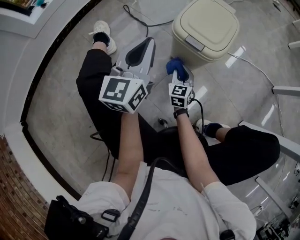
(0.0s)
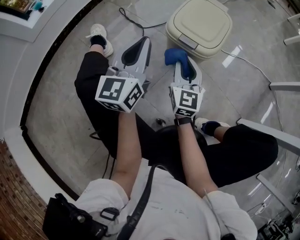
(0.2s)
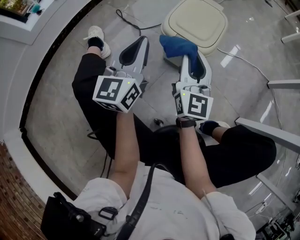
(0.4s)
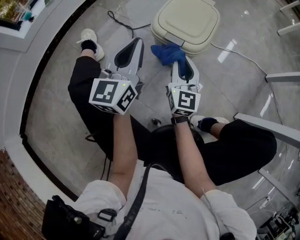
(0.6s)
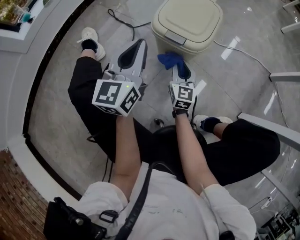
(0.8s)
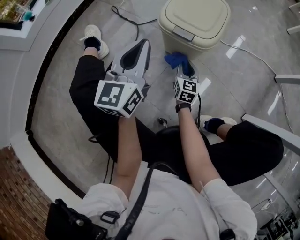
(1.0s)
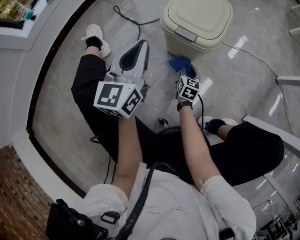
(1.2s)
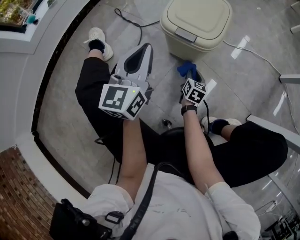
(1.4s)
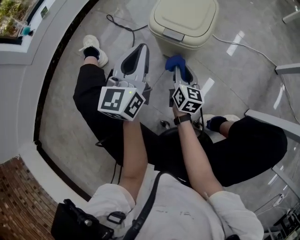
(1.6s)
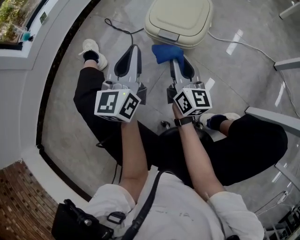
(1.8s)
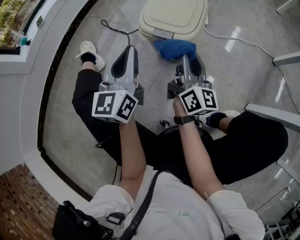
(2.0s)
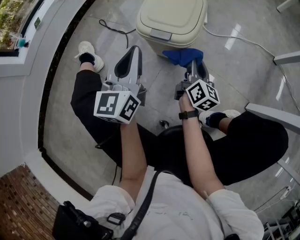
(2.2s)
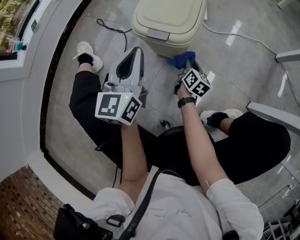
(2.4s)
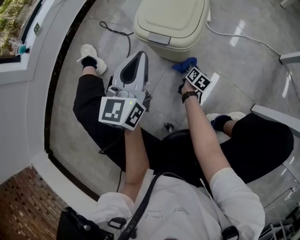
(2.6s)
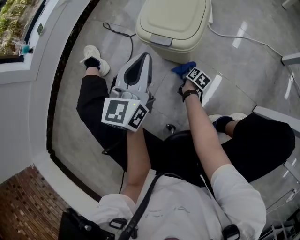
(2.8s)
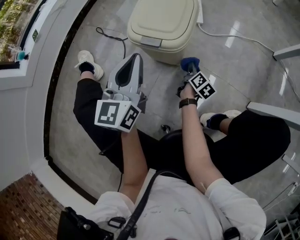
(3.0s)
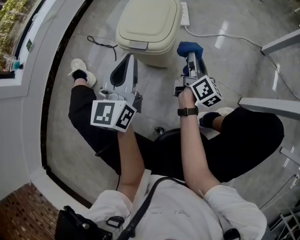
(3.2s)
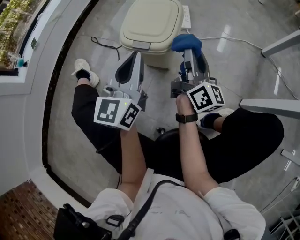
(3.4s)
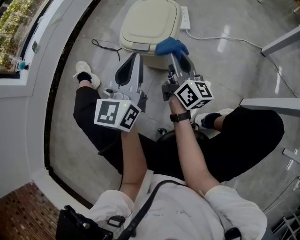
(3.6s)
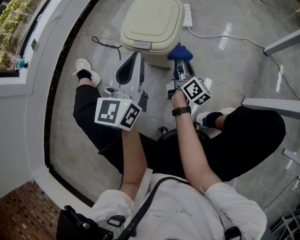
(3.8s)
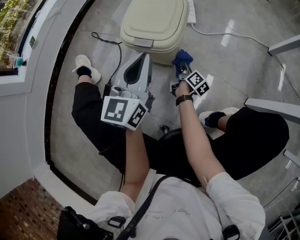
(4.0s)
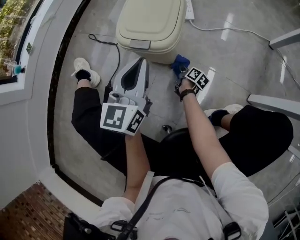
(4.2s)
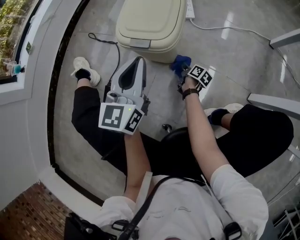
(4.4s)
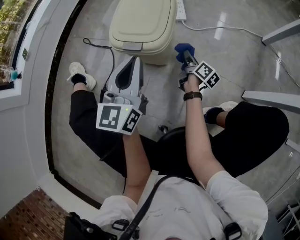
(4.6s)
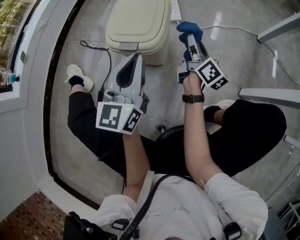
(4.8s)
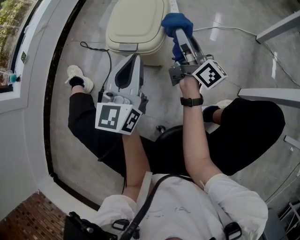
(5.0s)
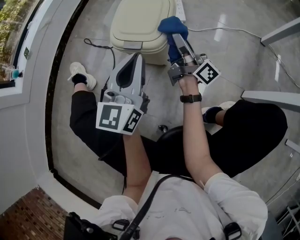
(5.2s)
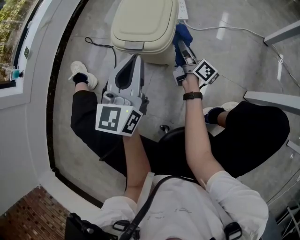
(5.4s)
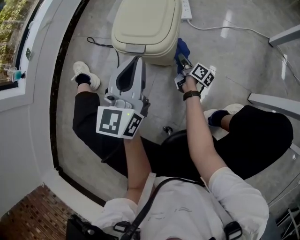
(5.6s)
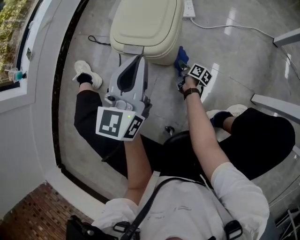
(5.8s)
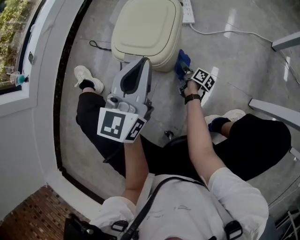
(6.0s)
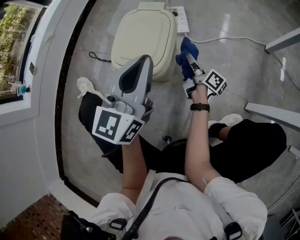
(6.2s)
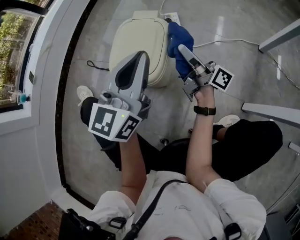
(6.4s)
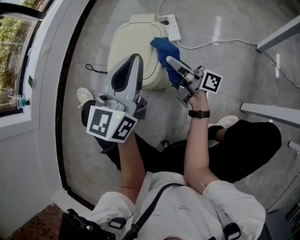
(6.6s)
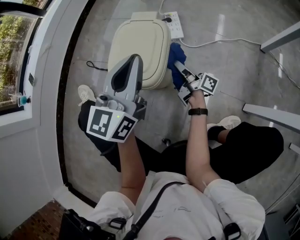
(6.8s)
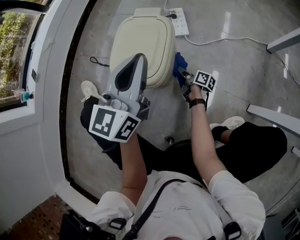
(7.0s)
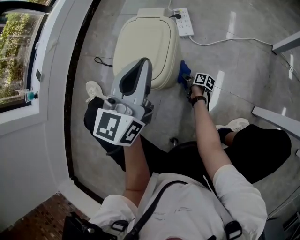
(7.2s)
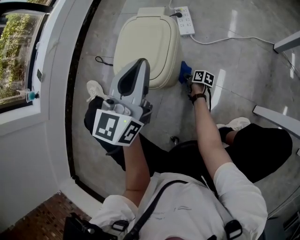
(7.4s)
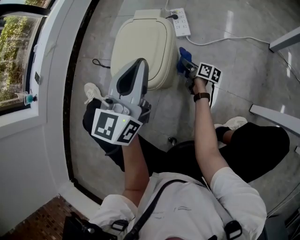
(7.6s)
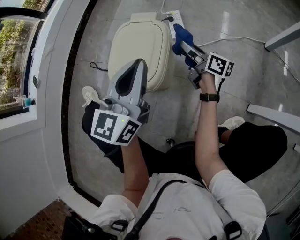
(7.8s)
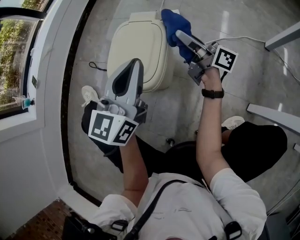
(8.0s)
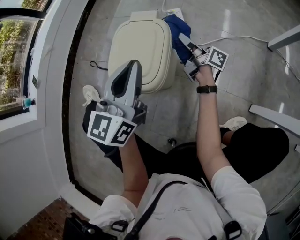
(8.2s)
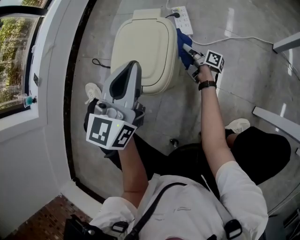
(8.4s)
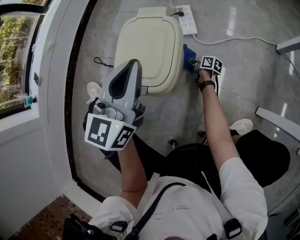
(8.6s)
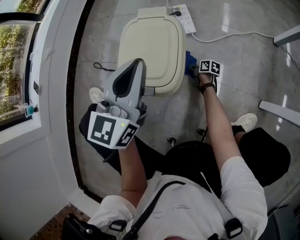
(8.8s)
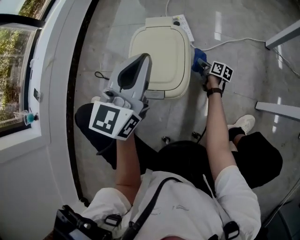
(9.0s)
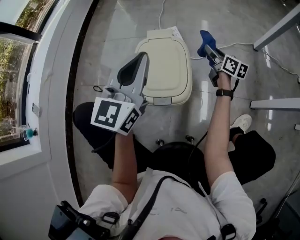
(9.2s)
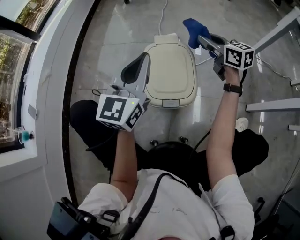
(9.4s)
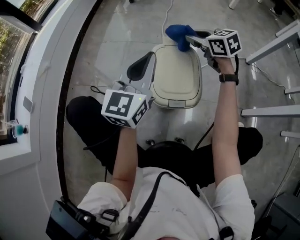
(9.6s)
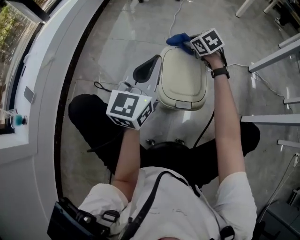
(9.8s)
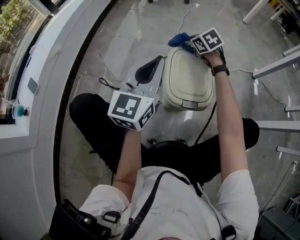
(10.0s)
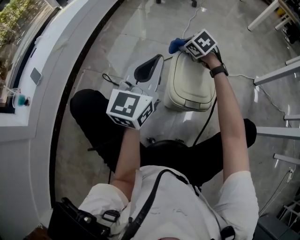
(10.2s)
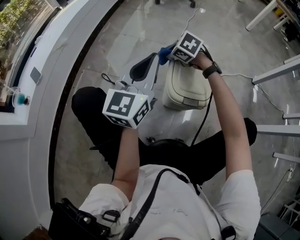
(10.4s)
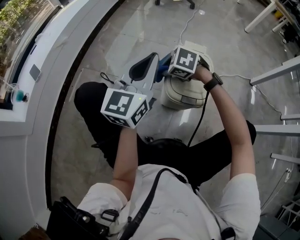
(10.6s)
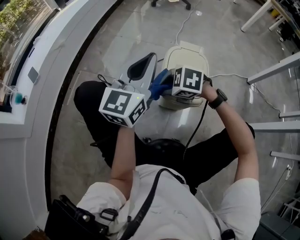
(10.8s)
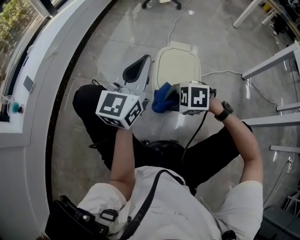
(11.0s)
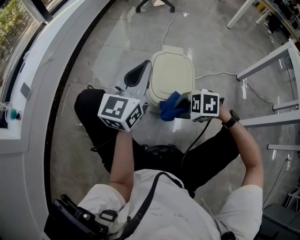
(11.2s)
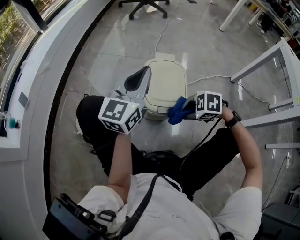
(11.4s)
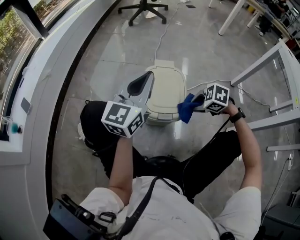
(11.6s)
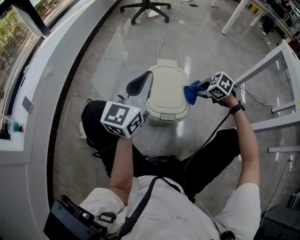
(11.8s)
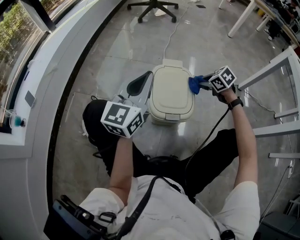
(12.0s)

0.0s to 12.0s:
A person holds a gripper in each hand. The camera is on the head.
0.0s to 1.6s: The right gripper goes up and down, about 35 cm each way, reversing 2 times, and turns by about 40 degrees; the left gripper moves to the right, approximately 5 cm.
1.6s to 3.0s: The right gripper goes up and down, approximately 35 cm each way, reversing 2 times, and changes its angle by roughly 40 degrees.
3.0s to 4.4s: The right gripper goes upward and returns, approximately 30 cm each way.
4.4s to 6.0s: The right gripper swings up and down, roughly 40 cm each way, with 2 reversals, while the left gripper moves roughly 5 cm.
6.0s to 7.6s: The right gripper swings up and down, roughly 40 cm each way, with 2 reversals, while the left gripper is displaced forward by some 5 cm.
7.6s to 9.0s: The left gripper travels to the left by some 5 cm; the right gripper goes up and down, approximately 40 cm each way, reversing 2 times.
9.0s to 10.4s: The left gripper moves some 20 cm; the right gripper ends up roughly 40 cm from where it was, and rolls counterclockwise, seen from behind, by some 90 degrees.
10.4s to 12.0s: The right gripper moves some 25 cm, and swivels roughly 20 degrees, while the left gripper changes place by some 5 cm.

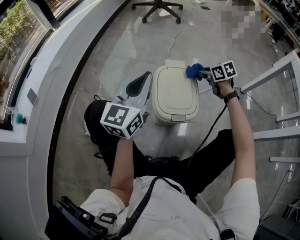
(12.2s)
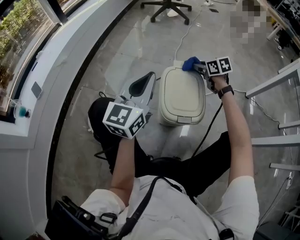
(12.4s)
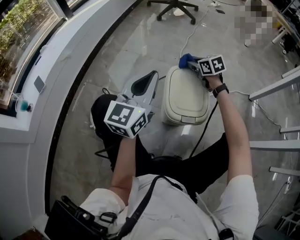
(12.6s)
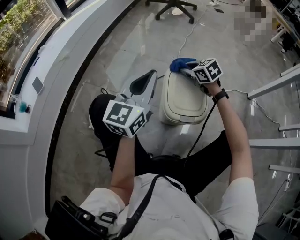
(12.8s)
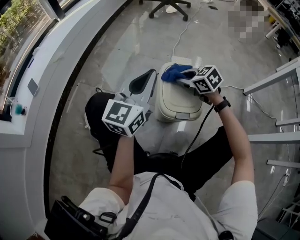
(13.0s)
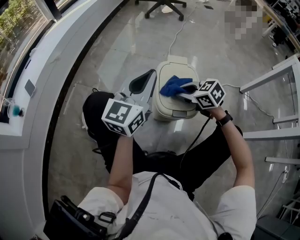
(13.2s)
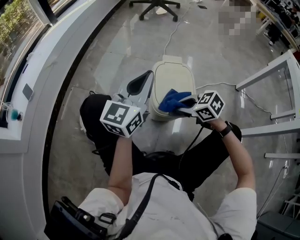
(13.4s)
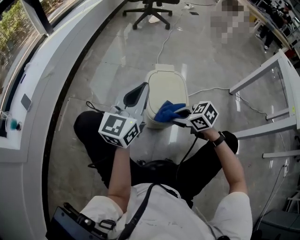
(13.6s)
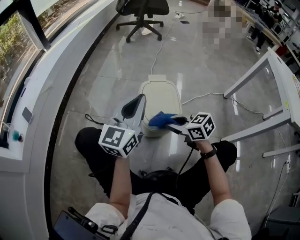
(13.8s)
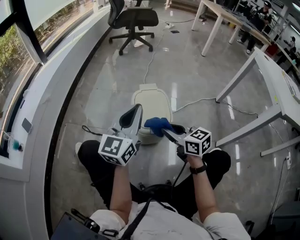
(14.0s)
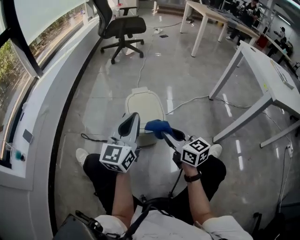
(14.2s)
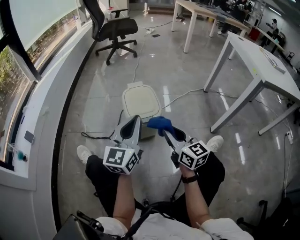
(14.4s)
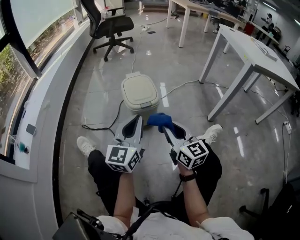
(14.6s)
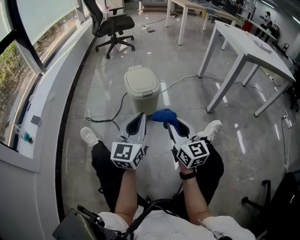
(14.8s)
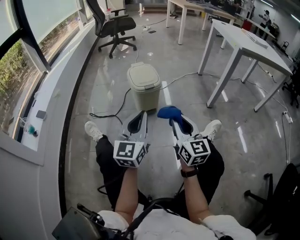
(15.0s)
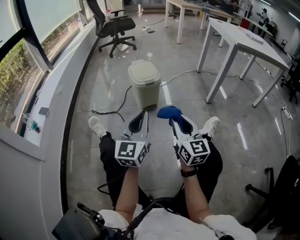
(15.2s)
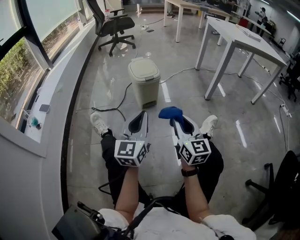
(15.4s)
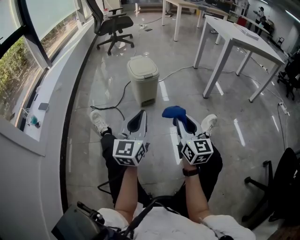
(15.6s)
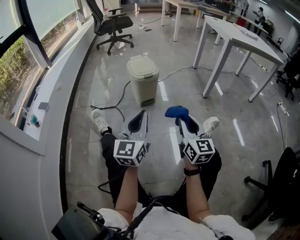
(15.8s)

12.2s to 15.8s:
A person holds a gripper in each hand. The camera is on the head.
12.2s to 14.0s: The left gripper travels backward by approximately 10 cm, while the right gripper moves backward, to the left and upward, roughly 30 cm, and rotates some 30 degrees.
14.0s to 15.8s: The two grippers travel together, approximately 40 cm. The right gripper turns by roughly 50 degrees.

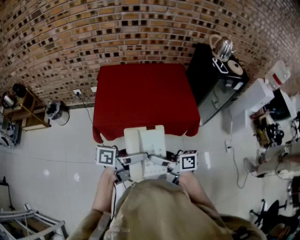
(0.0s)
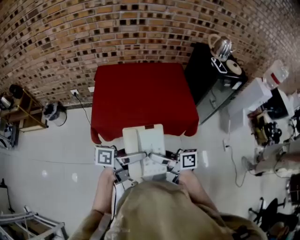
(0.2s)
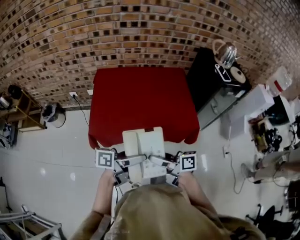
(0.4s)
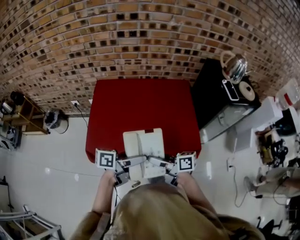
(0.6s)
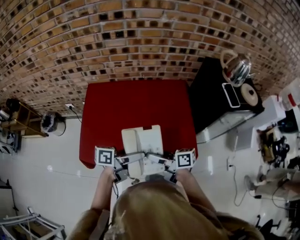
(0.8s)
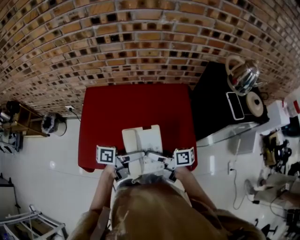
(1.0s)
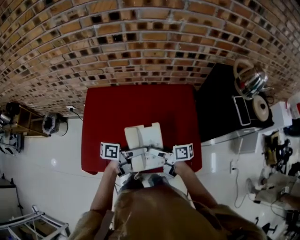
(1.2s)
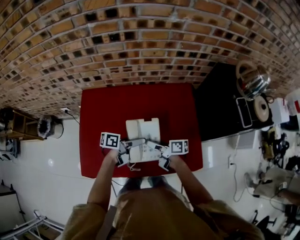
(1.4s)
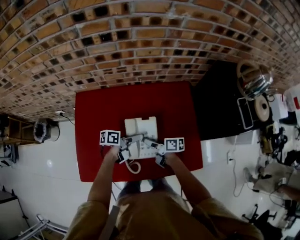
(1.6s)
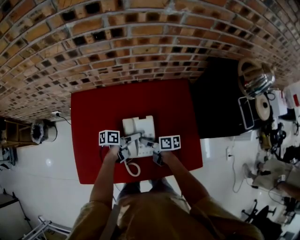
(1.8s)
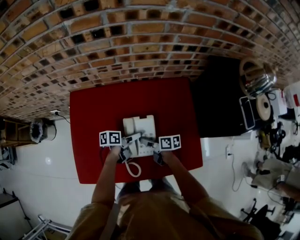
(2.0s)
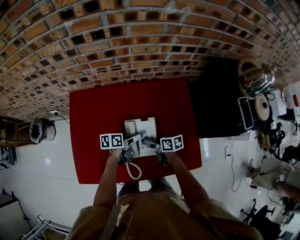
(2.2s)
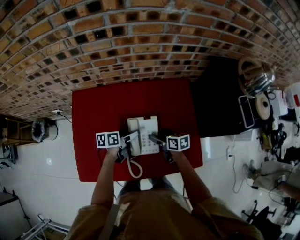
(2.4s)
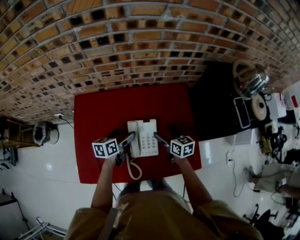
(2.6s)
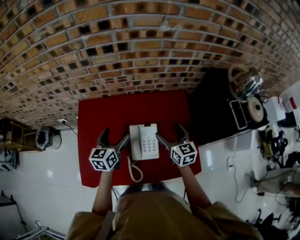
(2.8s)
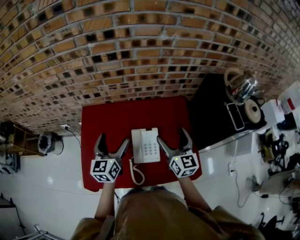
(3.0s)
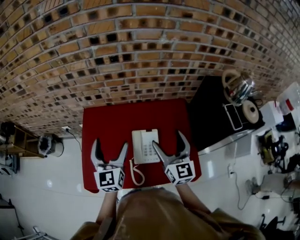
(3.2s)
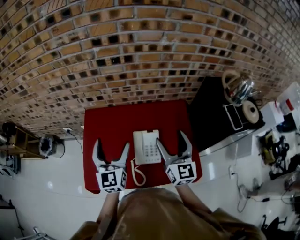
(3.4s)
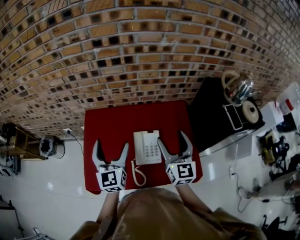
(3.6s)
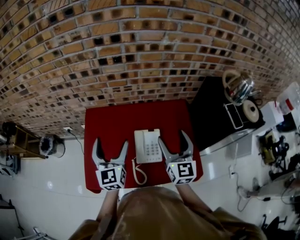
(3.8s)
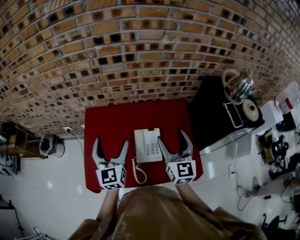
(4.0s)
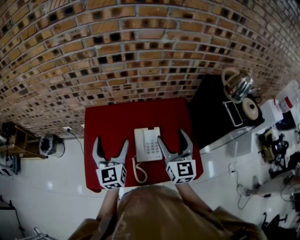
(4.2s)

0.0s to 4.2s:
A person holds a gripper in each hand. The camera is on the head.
0.0s to 1.4s: Both grippers are carried approximately 50 cm. The right gripper turns by some 20 degrees.
1.4s to 2.8s: The left gripper moves some 15 cm, and changes its angle by some 60 degrees. The right gripper ends up about 20 cm from where it was, rotates around the line of its fingers by approximately 50 degrees, counterclockwise from behind, and opens up.
2.8s to 4.2s: The grippers both shift upward and backward by approximately 15 cm. The right gripper swivels roughly 20 degrees, while the left gripper turns by some 30 degrees.

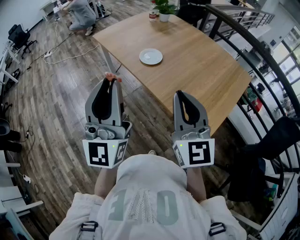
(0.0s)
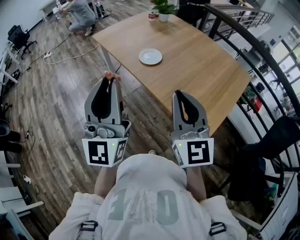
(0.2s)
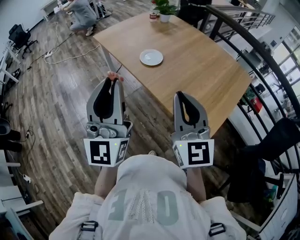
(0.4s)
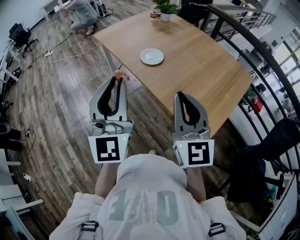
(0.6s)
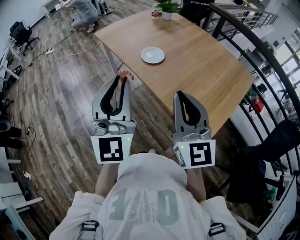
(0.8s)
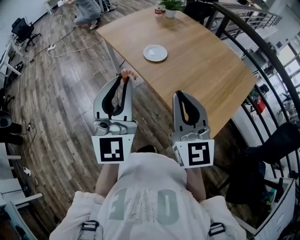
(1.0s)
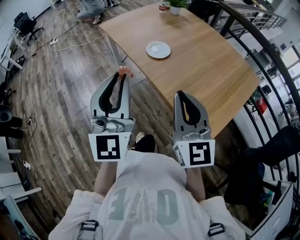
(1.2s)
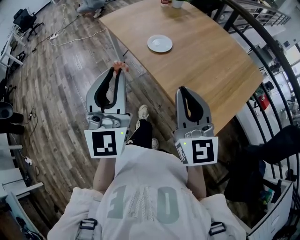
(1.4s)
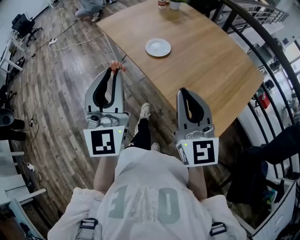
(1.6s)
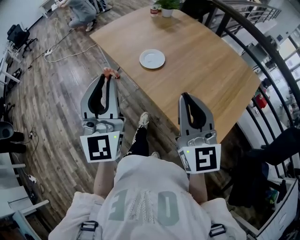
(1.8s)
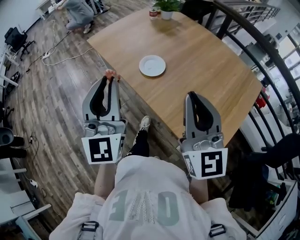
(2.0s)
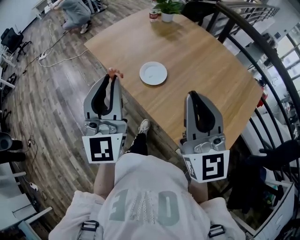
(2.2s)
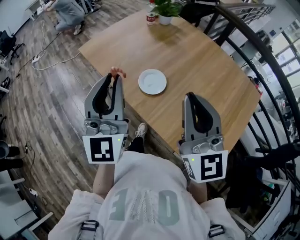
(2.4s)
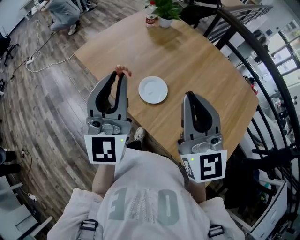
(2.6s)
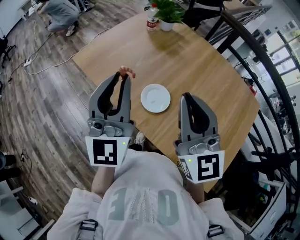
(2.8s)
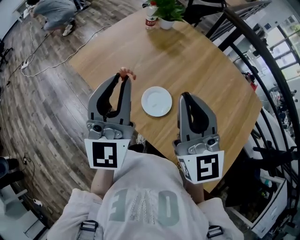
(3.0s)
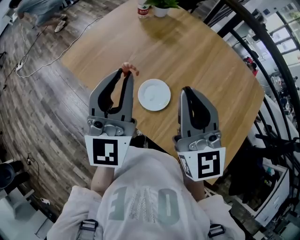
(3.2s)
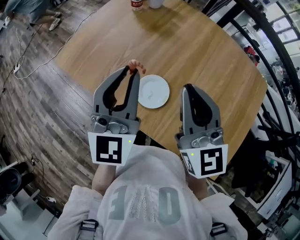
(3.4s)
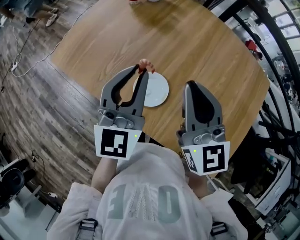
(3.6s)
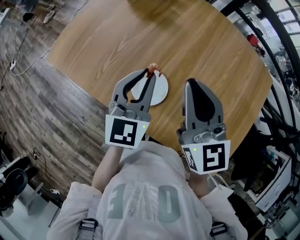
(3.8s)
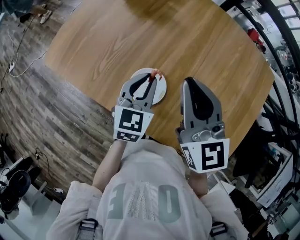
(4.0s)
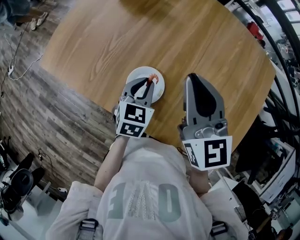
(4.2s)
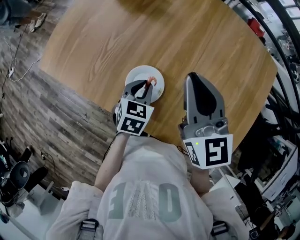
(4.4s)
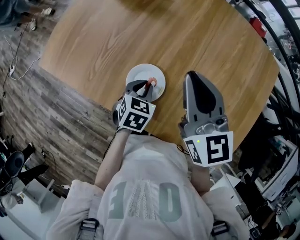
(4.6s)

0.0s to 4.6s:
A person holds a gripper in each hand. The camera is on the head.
0.0s to 1.6s: The left gripper heads forward, covering about 5 cm, and swivels some 20 degrees, while the right gripper changes place by roughly 5 cm.
1.6s to 3.0s: Both grippers move forward, about 30 cm.
3.0s to 4.6s: The left gripper is displaced downward by approximately 35 cm, and tilts its fingers some 70 degrees downward, while the right gripper is displaced downward, to the right and forward by some 15 cm, and turns by roughly 20 degrees.
